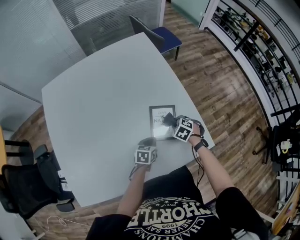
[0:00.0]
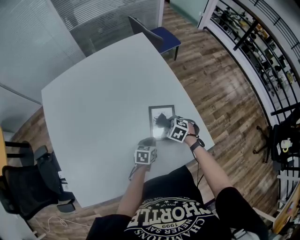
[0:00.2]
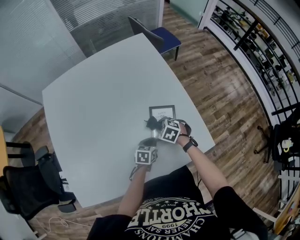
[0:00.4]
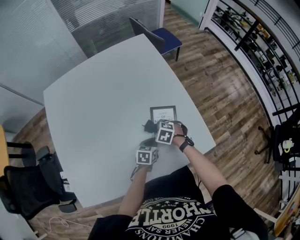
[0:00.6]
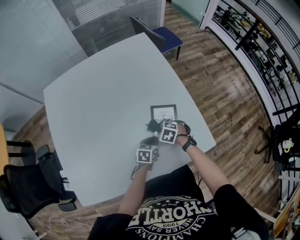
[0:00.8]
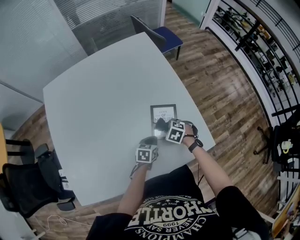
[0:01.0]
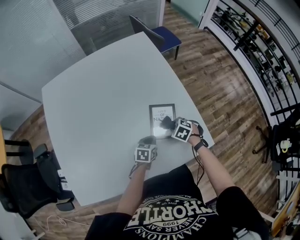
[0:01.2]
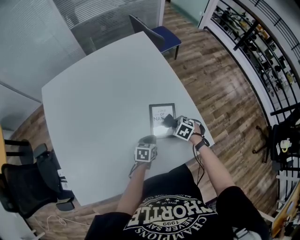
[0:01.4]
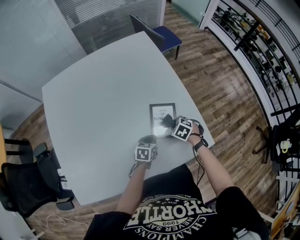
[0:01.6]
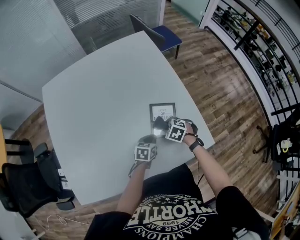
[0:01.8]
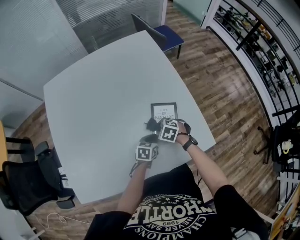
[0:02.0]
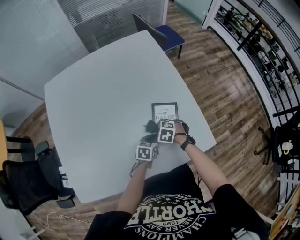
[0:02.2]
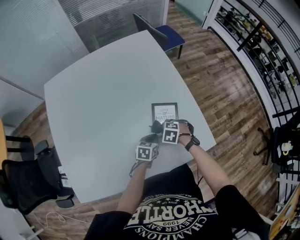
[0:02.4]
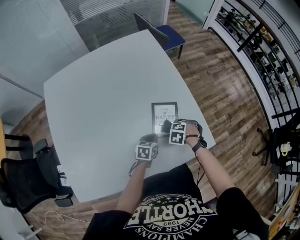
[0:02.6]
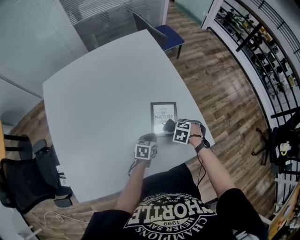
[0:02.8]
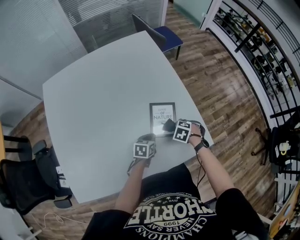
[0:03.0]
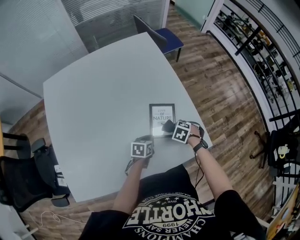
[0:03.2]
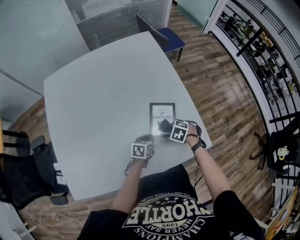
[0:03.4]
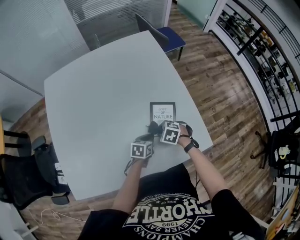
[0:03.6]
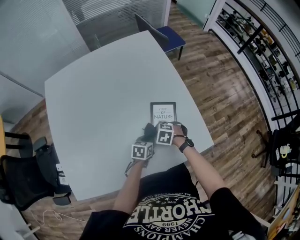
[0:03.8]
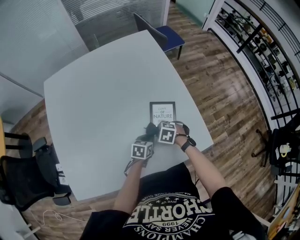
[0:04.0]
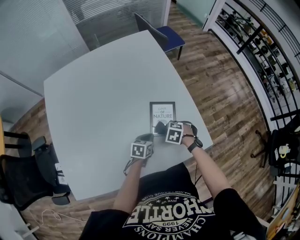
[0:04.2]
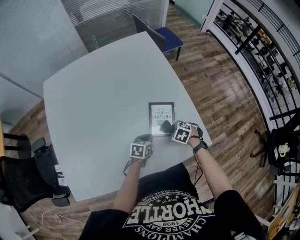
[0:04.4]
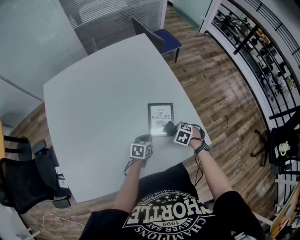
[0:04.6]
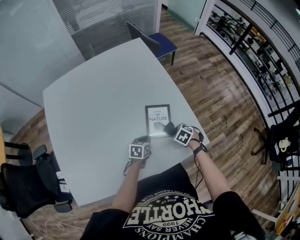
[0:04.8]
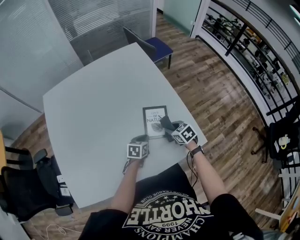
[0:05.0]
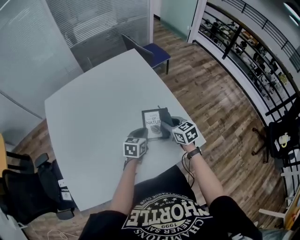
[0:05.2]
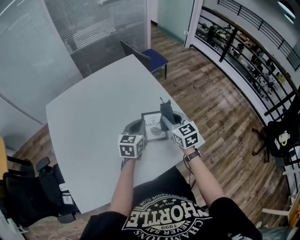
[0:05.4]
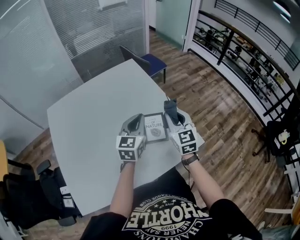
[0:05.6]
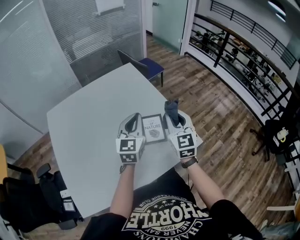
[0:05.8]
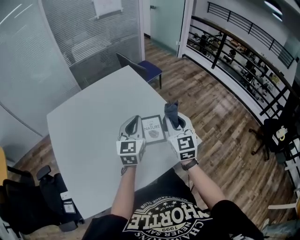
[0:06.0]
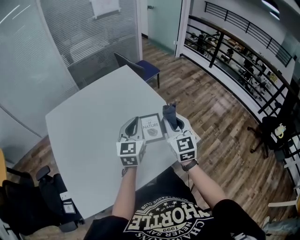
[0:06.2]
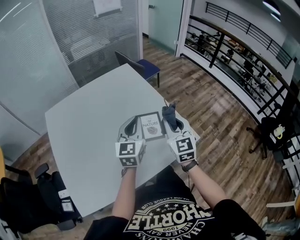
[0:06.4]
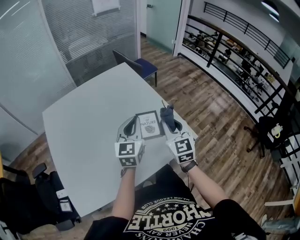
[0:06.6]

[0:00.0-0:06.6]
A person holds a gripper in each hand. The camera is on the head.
0:00.0 to 0:01.6: The right gripper moves about 10 cm to the left and comes back.
0:03.2 to 0:05.0: The right gripper goes approximately 5 cm upward, and angles its fingers upward, by about 30 degrees.
0:05.0 to 0:06.6: Both grippers travel together upward, about 30 cm. The right gripper tilts its fingers some 40 degrees upward. The left gripper tilts its fingers roughly 40 degrees upward.

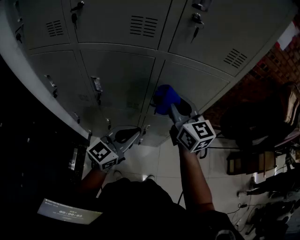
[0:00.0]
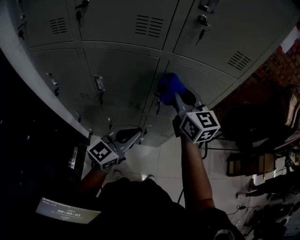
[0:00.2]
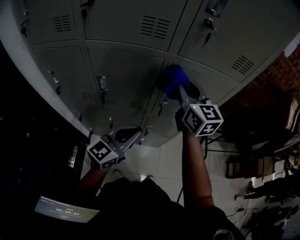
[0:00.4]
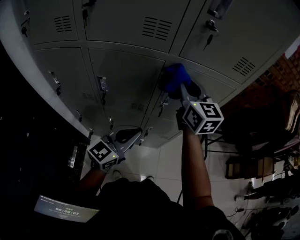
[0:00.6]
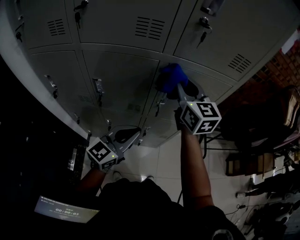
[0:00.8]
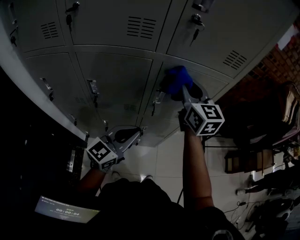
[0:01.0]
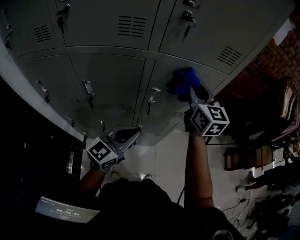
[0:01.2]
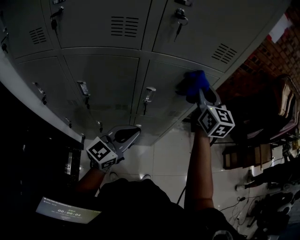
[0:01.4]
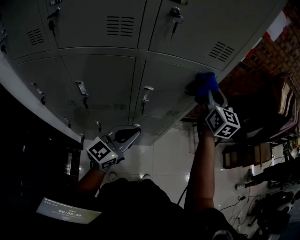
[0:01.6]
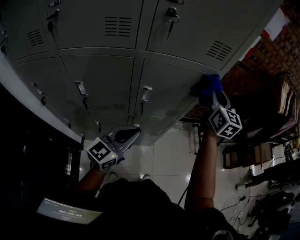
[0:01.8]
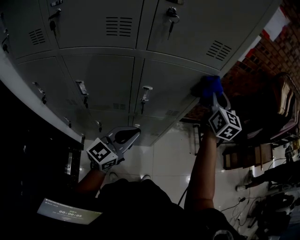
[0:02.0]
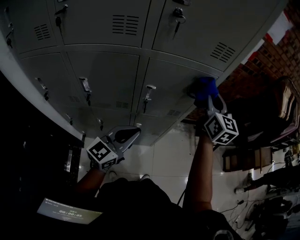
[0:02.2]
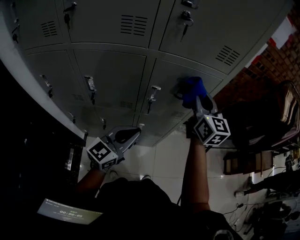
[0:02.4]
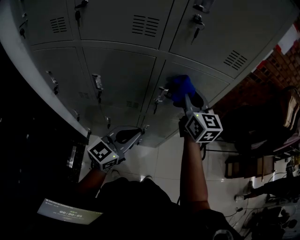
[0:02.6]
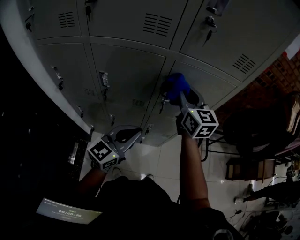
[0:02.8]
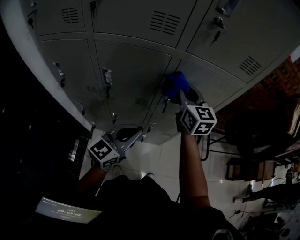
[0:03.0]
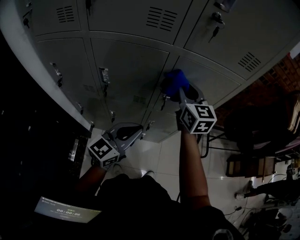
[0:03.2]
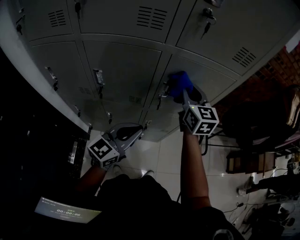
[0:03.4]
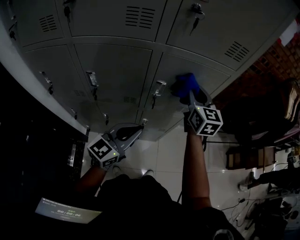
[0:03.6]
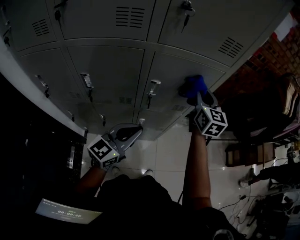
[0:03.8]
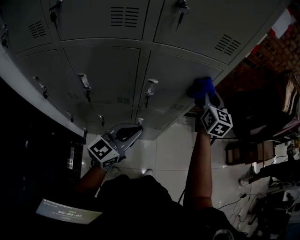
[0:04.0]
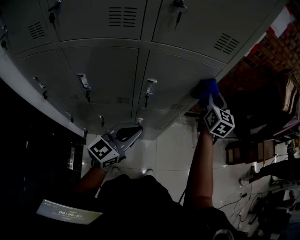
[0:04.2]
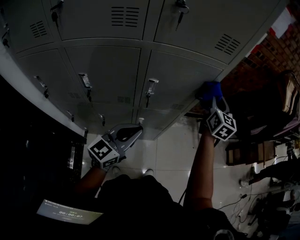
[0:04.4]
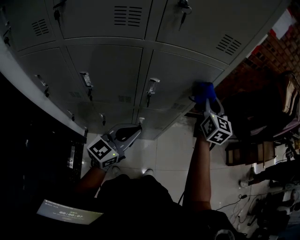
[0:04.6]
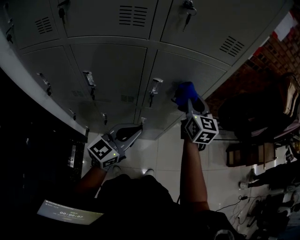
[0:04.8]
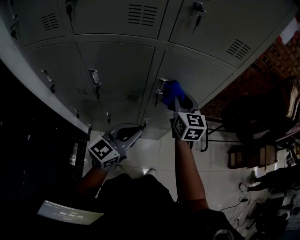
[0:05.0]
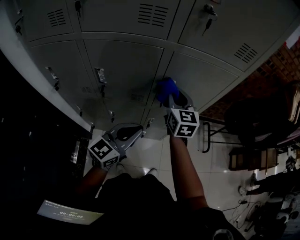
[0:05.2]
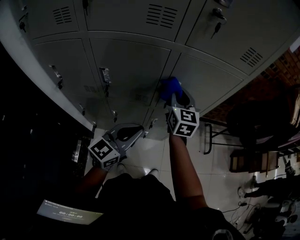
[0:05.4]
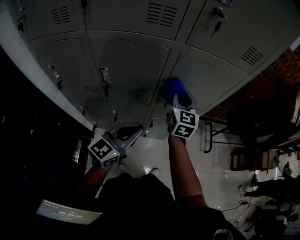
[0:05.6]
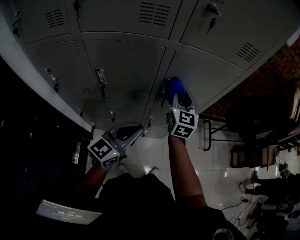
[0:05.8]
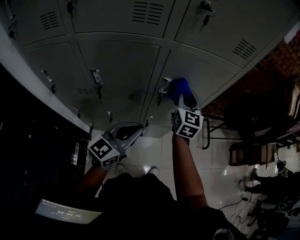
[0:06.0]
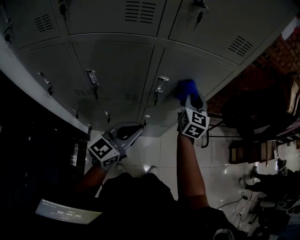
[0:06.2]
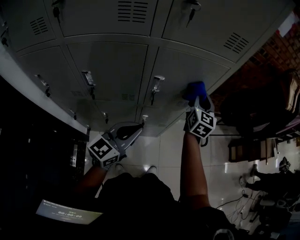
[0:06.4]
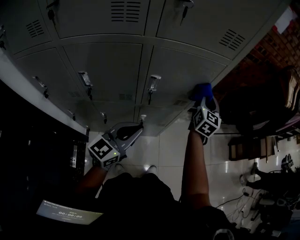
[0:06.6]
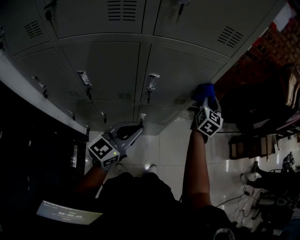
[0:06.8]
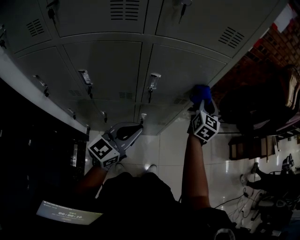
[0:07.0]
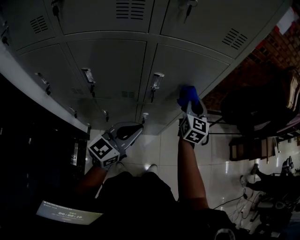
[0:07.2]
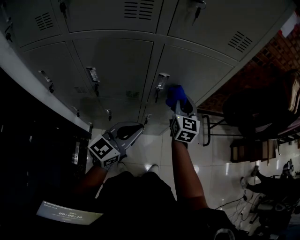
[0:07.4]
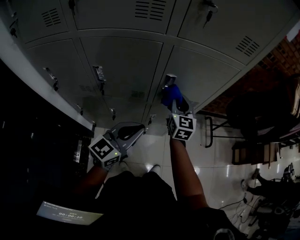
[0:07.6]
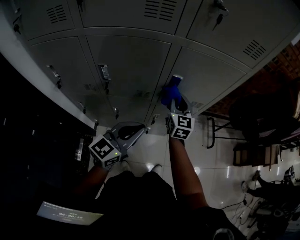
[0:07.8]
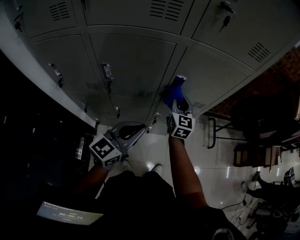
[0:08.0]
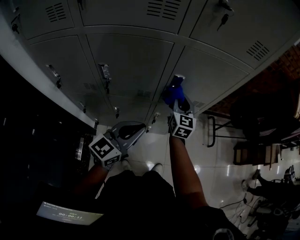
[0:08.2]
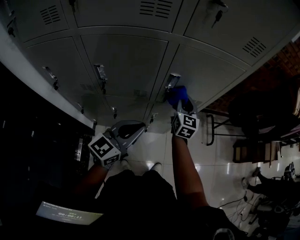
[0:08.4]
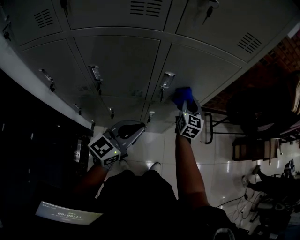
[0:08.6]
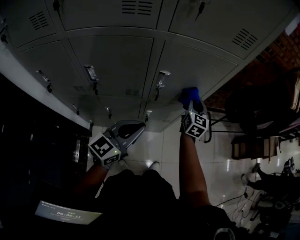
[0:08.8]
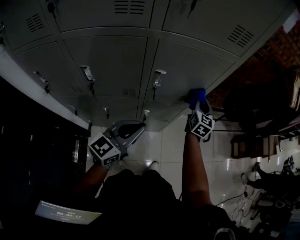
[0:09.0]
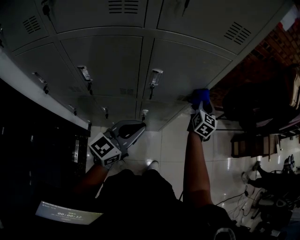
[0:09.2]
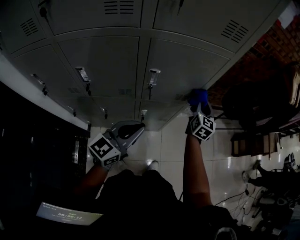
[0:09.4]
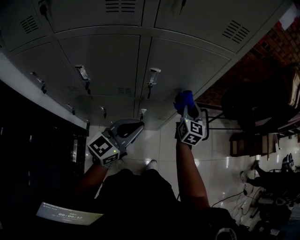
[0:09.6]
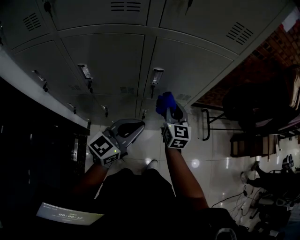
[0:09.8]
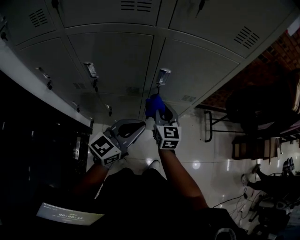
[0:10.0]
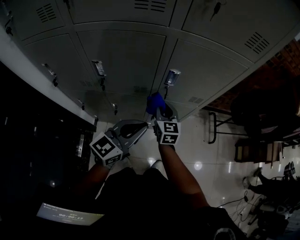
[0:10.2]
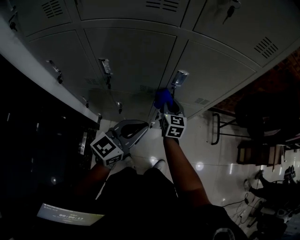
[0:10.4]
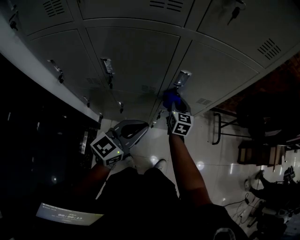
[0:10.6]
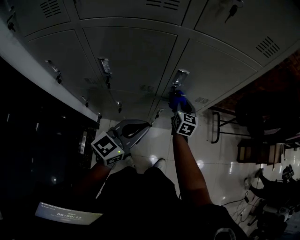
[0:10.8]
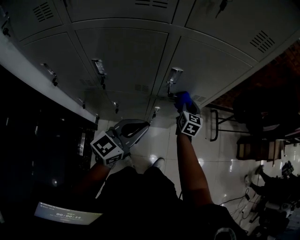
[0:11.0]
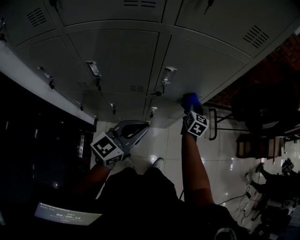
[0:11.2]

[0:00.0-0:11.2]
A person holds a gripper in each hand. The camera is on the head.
0:00.0 to 0:01.6: The left gripper ends up some 5 cm from where it was; the right gripper heads to the right and forward, covering roughly 20 cm, and turns by some 30 degrees.
0:01.6 to 0:03.2: The right gripper moves to the left, approximately 20 cm; the left gripper heads to the left, covering about 5 cm.
0:03.2 to 0:04.8: The right gripper shifts some 10 cm to the right.
0:04.8 to 0:06.4: The right gripper moves roughly 15 cm to the left and comes back.
0:06.4 to 0:08.0: The left gripper shifts by about 5 cm, while the right gripper heads to the left, downward and backward, covering roughly 20 cm.
0:08.0 to 0:09.6: The left gripper travels to the right by about 5 cm, while the right gripper moves to the right, approximately 15 cm.
0:09.6 to 0:11.2: The right gripper is displaced downward by approximately 10 cm, and moves roughly 20 cm to the left and comes back.

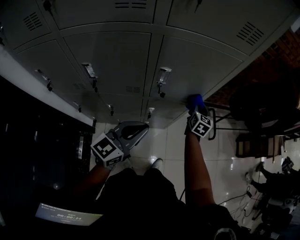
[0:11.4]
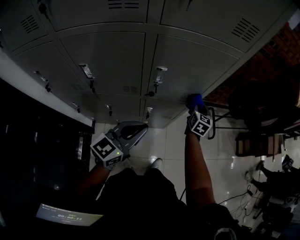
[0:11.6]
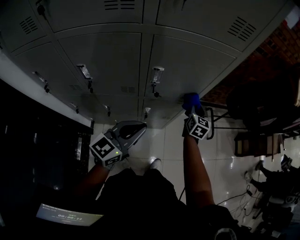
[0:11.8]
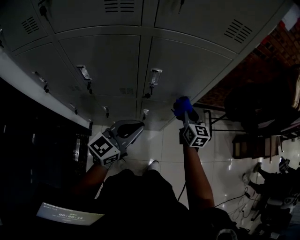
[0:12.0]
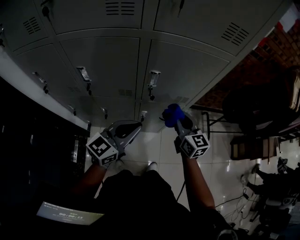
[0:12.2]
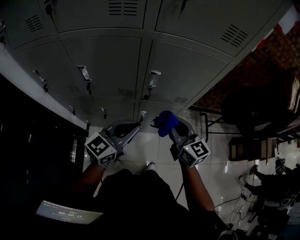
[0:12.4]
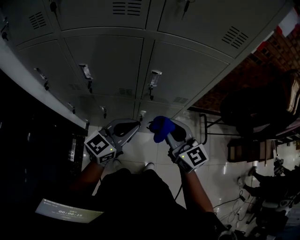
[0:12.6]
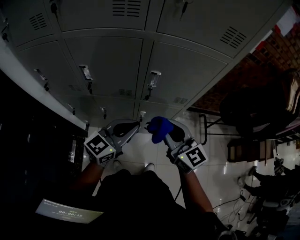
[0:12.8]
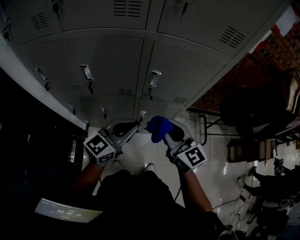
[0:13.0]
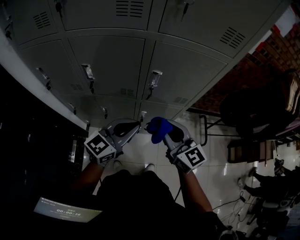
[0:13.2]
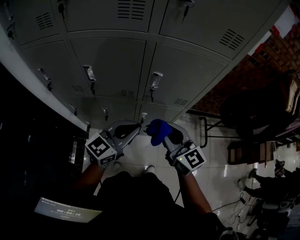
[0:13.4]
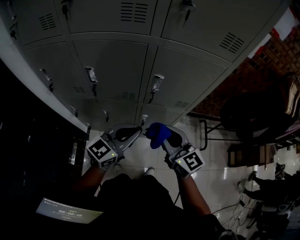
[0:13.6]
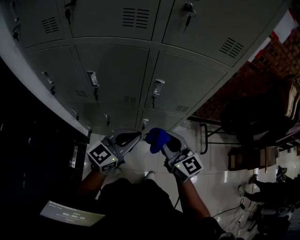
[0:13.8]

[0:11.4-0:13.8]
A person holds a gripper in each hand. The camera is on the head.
0:11.4 to 0:12.6: The right gripper changes place by roughly 30 cm, and swivels approximately 50 degrees.
0:12.6 to 0:13.8: The grippers make only small movements.

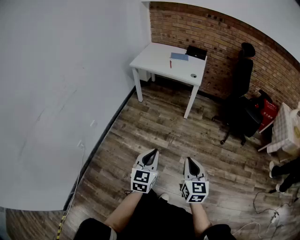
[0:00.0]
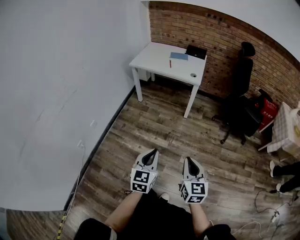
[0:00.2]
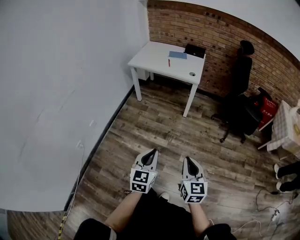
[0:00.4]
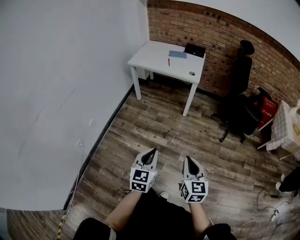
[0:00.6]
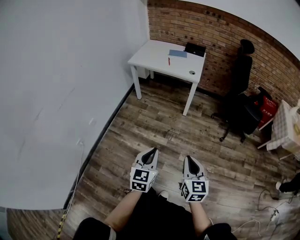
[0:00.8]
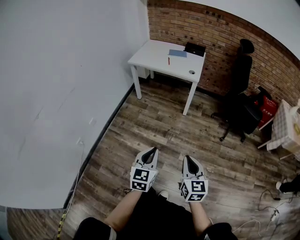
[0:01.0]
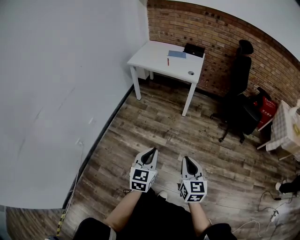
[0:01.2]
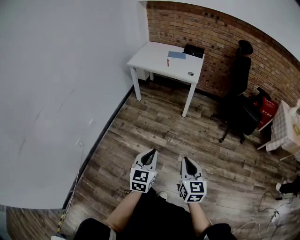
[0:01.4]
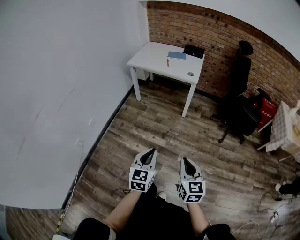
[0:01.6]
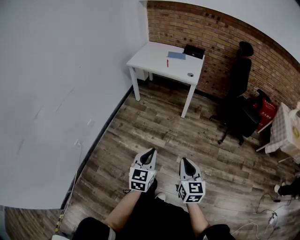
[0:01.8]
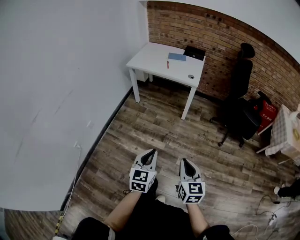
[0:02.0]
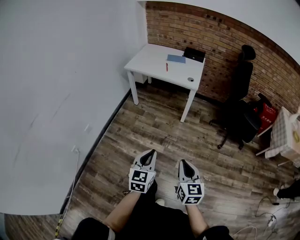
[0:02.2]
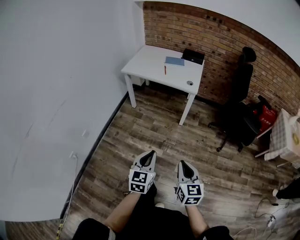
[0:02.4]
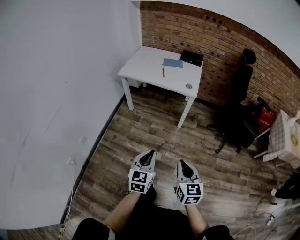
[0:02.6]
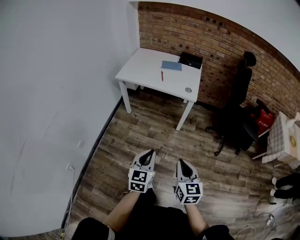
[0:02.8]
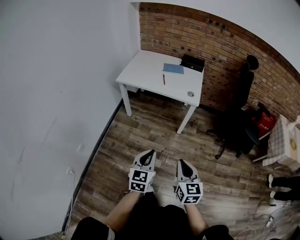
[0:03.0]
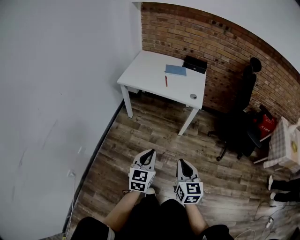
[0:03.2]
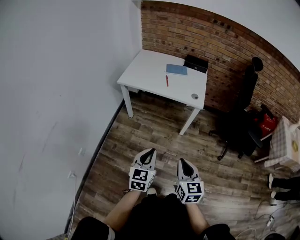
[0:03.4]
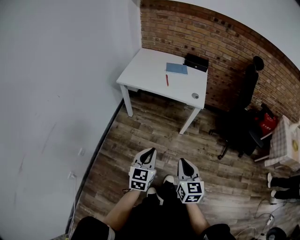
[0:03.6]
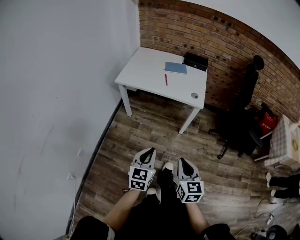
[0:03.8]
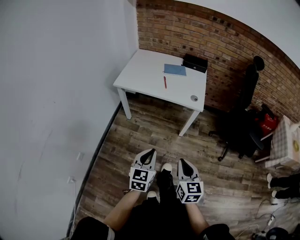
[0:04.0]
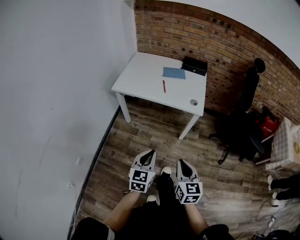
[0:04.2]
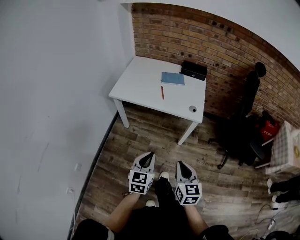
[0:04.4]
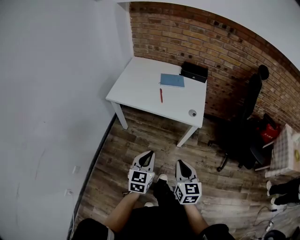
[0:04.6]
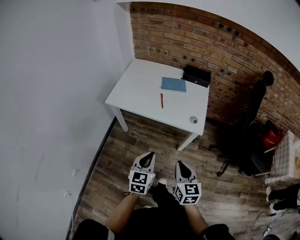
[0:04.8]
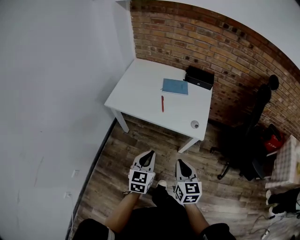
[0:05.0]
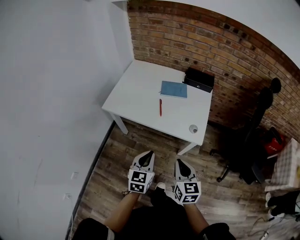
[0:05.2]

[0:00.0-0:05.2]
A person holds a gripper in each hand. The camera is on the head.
0:00.0 to 0:01.8: There are only small adjustments of the grippers.
0:01.8 to 0:03.4: Both grippers travel together forward, about 30 cm.
0:03.4 to 0:05.2: The two grippers go approximately 35 cm forward.
